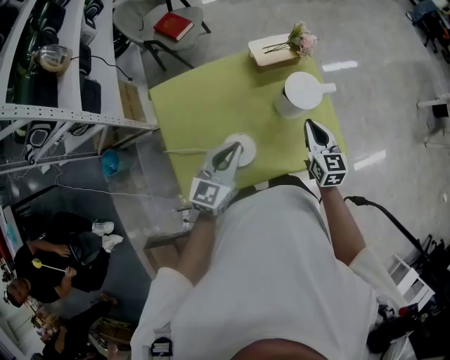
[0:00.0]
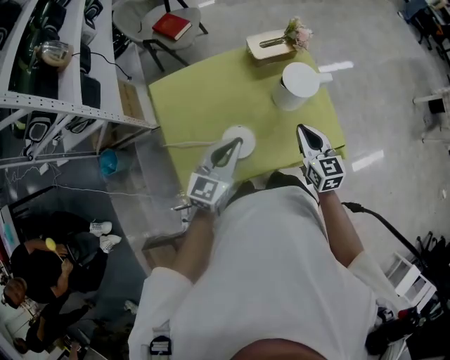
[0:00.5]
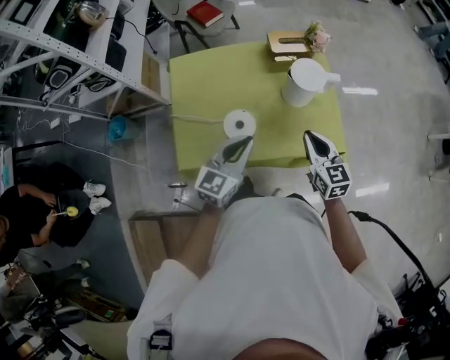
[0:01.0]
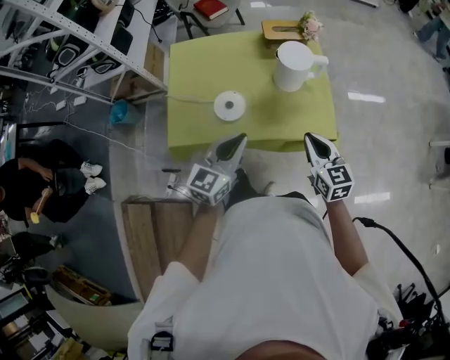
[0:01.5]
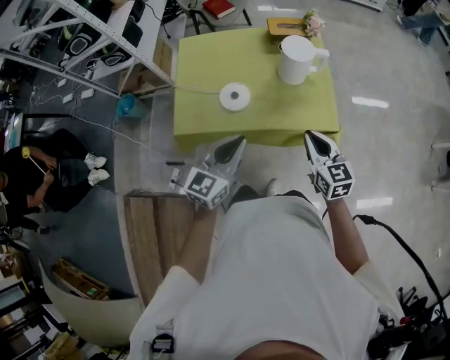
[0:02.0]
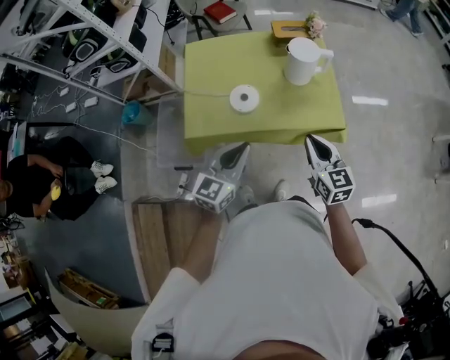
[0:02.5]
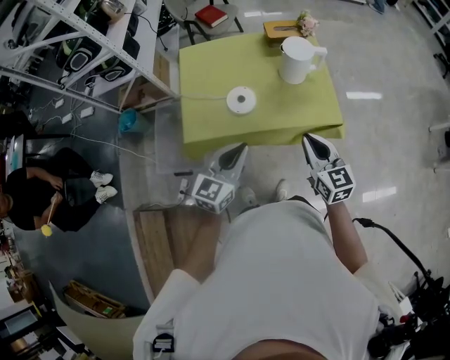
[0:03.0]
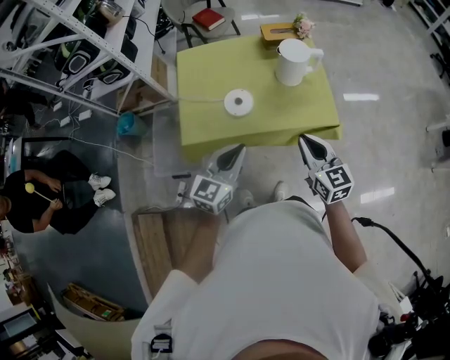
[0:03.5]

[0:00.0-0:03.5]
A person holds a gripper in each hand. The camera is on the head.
0:00.0 to 0:02.0: The right gripper heads backward, covering about 25 cm, and swivels approximately 20 degrees. The left gripper travels backward and to the right by approximately 30 cm.
0:02.0 to 0:03.5: Both grippers travel together to the left, roughly 5 cm.

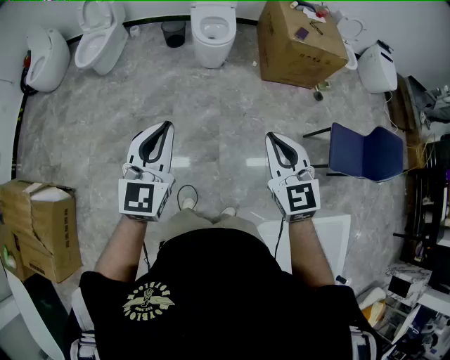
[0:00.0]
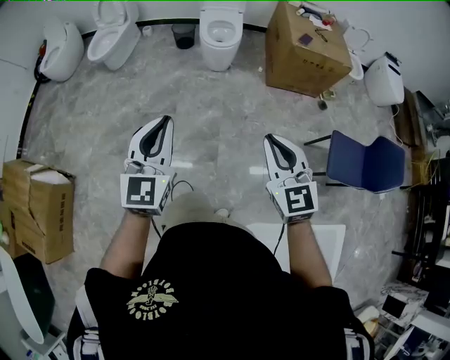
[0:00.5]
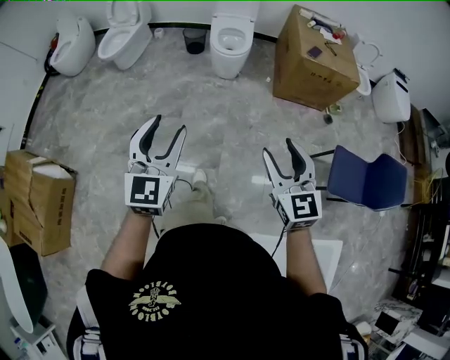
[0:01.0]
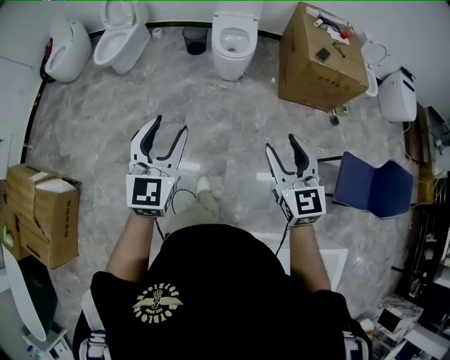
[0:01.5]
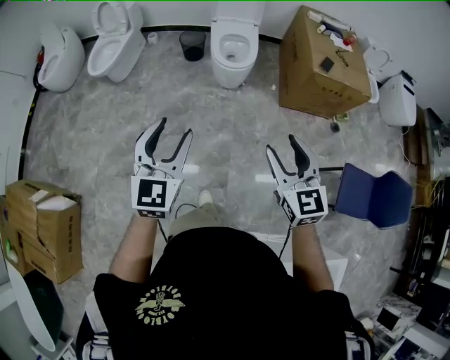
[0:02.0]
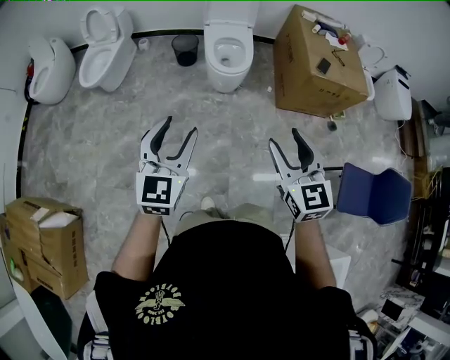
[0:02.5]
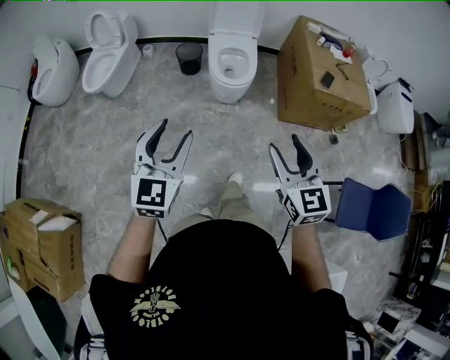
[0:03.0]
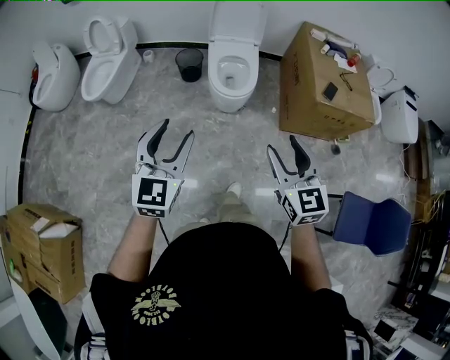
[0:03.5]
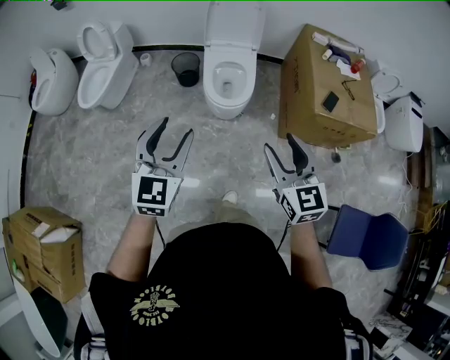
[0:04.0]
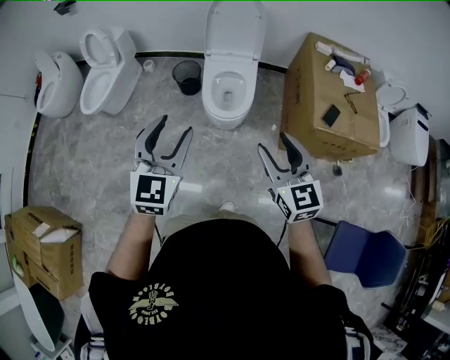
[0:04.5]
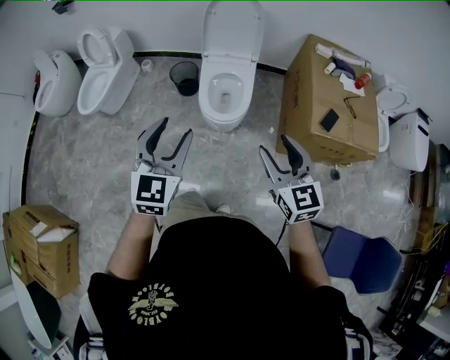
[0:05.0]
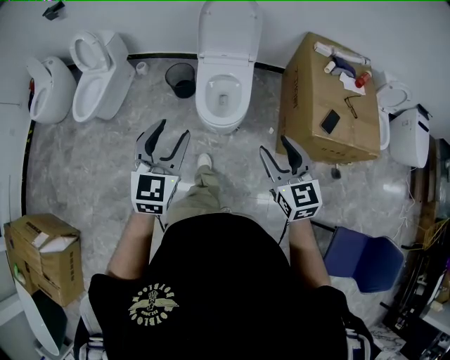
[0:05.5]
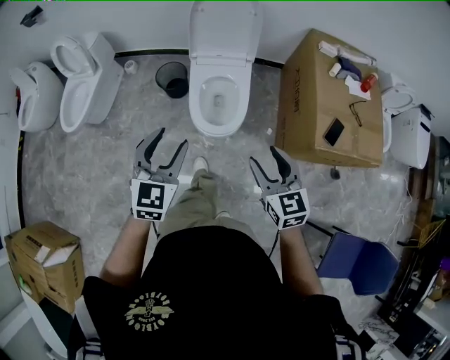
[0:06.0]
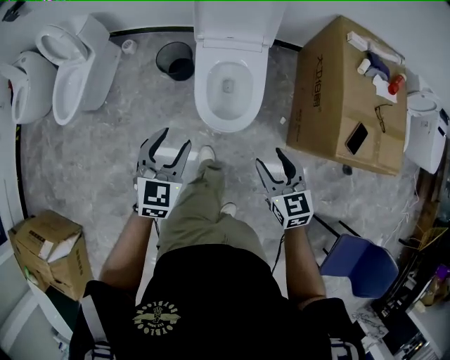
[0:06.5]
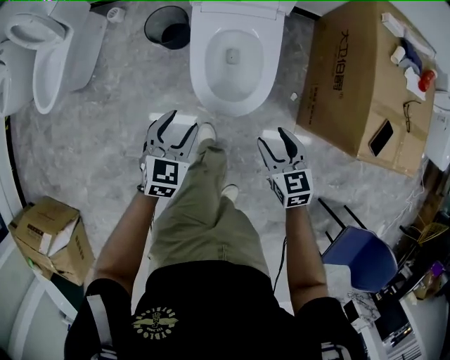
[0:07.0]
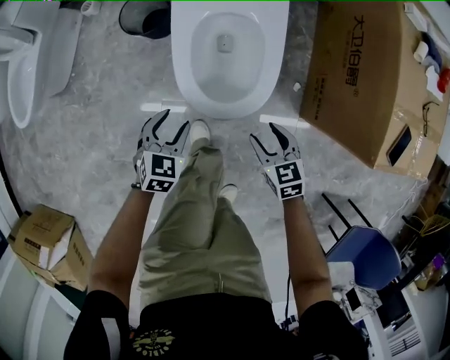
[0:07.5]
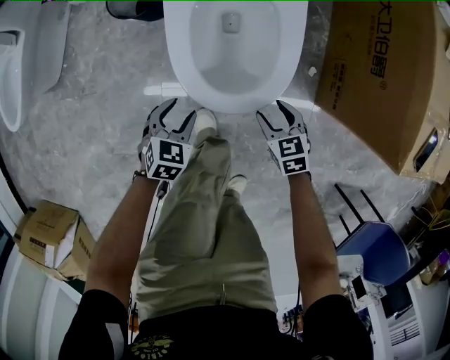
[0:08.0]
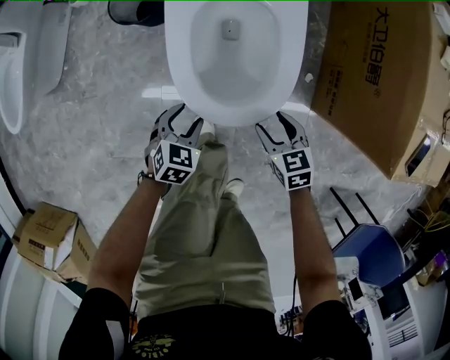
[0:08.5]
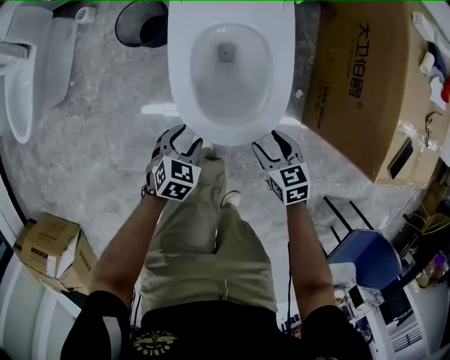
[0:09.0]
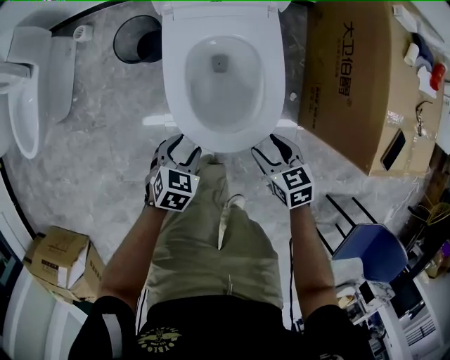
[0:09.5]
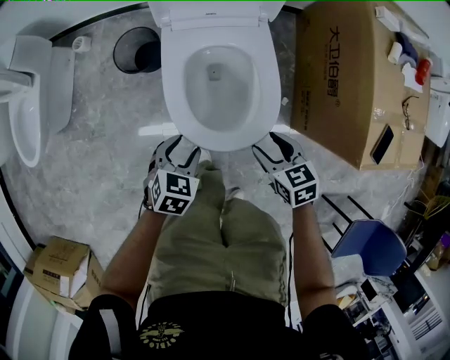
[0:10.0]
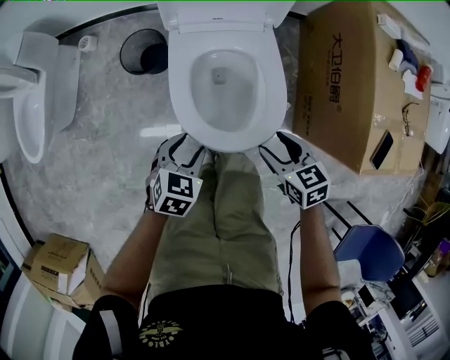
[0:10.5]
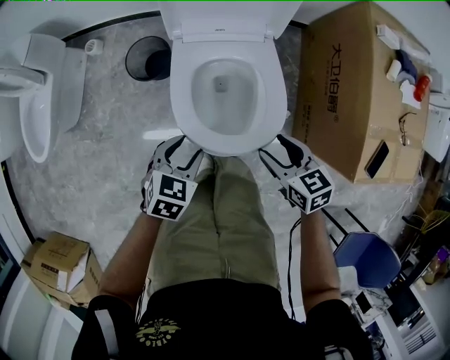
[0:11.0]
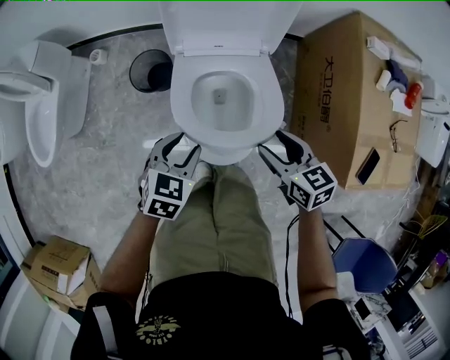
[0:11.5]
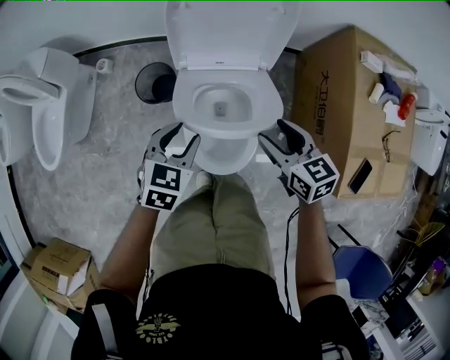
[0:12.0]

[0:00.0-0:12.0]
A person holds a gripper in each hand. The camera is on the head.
0:00.0 to 0:02.0: The grippers both shift forward by approximately 20 cm. The left gripper opens. Meanwhile the right gripper opens.
0:02.0 to 0:04.0: Both grippers travel together forward, some 30 cm.
0:04.0 to 0:06.0: The two grippers go approximately 25 cm forward and downward.
0:06.0 to 0:08.0: Both grippers move downward, some 60 cm. The right gripper swivels roughly 30 degrees. The left gripper tips its fingers downward by about 30 degrees.
0:08.0 to 0:10.0: The grippers both shift upward by about 20 cm.
0:10.0 to 0:12.0: Both grippers travel together upward and forward, roughly 25 cm.

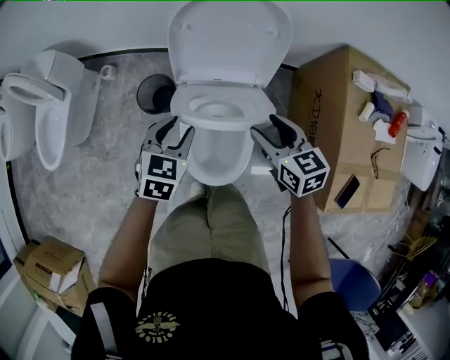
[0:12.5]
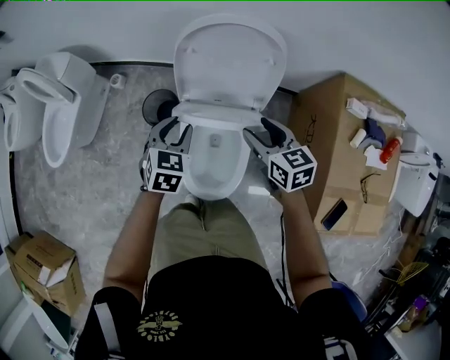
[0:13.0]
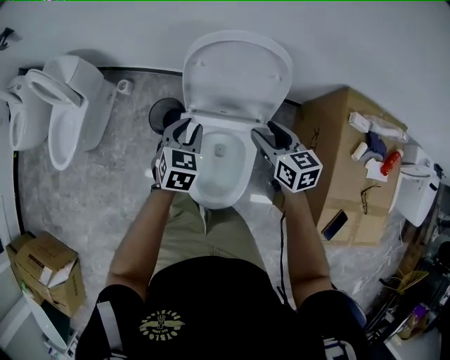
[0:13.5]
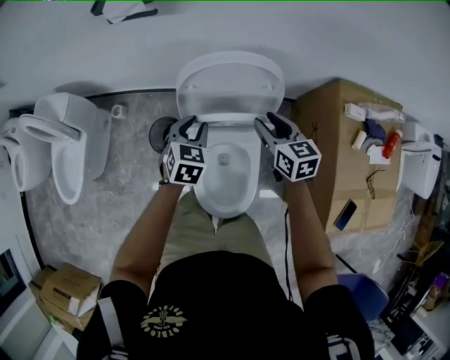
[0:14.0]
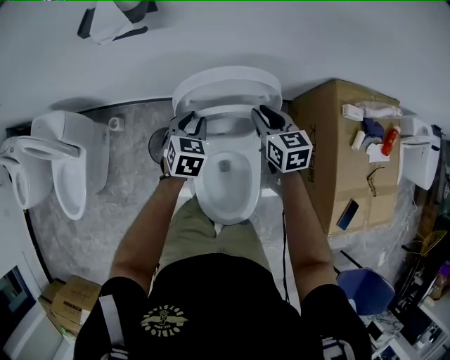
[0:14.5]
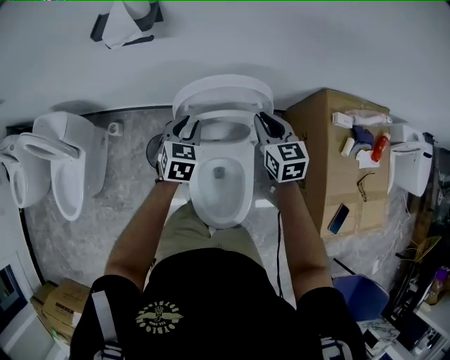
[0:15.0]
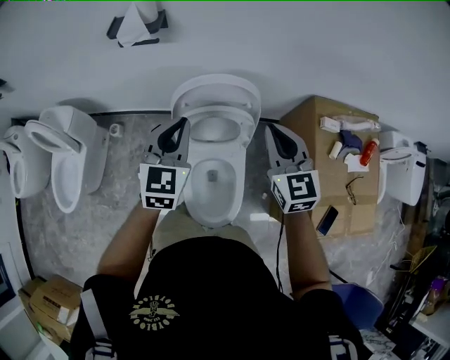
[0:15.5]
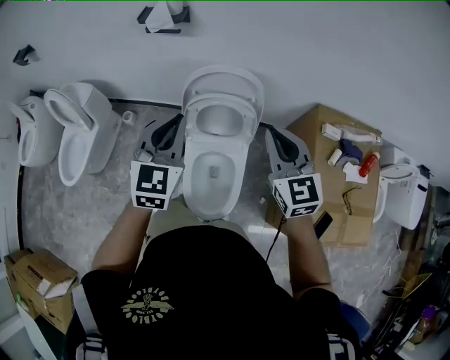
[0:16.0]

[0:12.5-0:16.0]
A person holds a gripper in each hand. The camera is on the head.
0:12.5 to 0:14.5: The grippers both shift forward by approximately 25 cm. The right gripper closes its fingers.
0:14.5 to 0:16.0: Both grippers travel together upward and backward, some 35 cm. The right gripper changes its angle by about 30 degrees; the left gripper changes its angle by roughly 30 degrees.

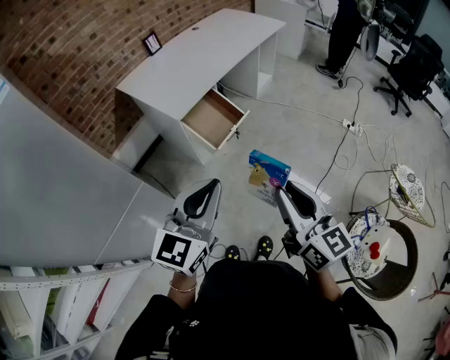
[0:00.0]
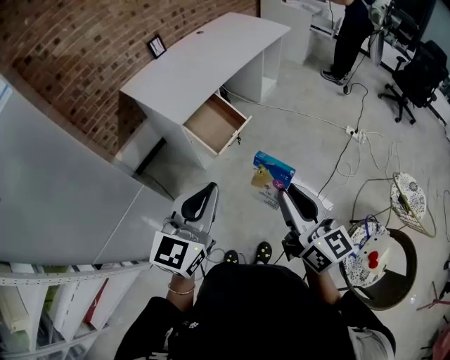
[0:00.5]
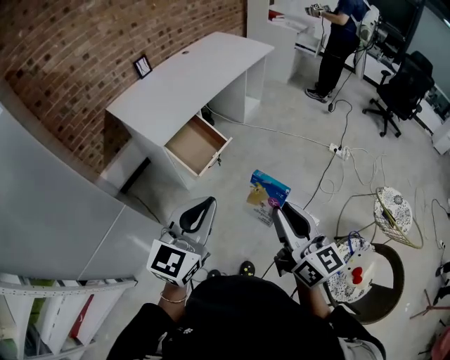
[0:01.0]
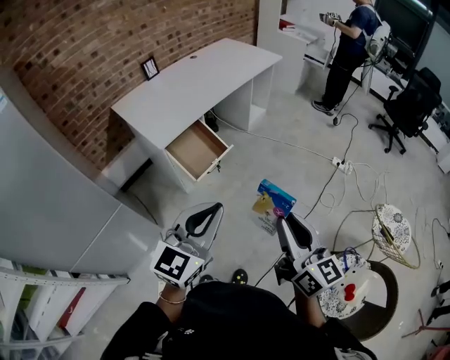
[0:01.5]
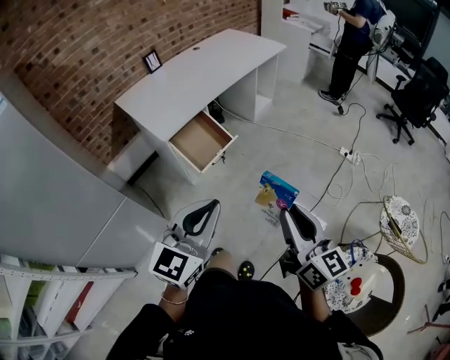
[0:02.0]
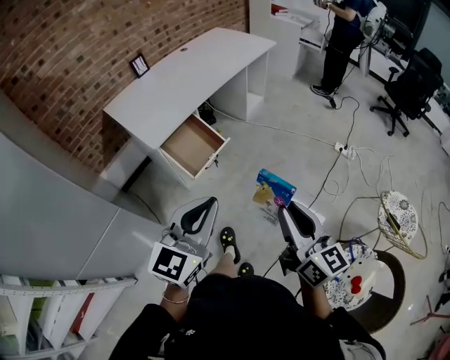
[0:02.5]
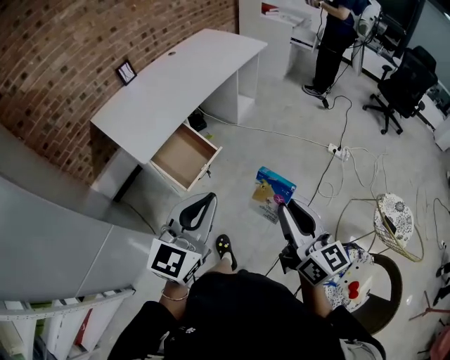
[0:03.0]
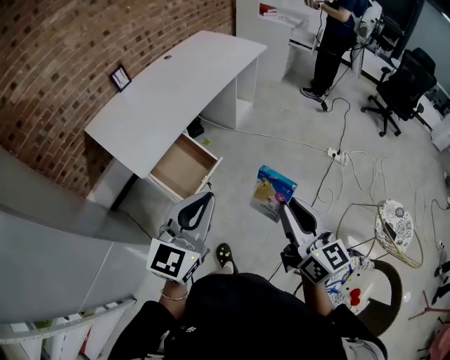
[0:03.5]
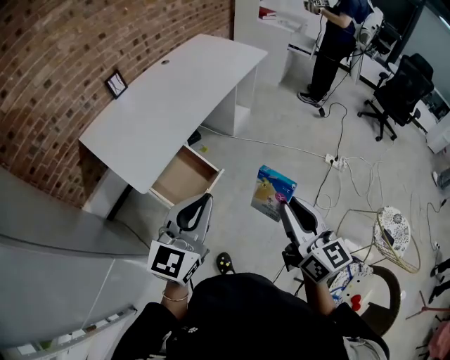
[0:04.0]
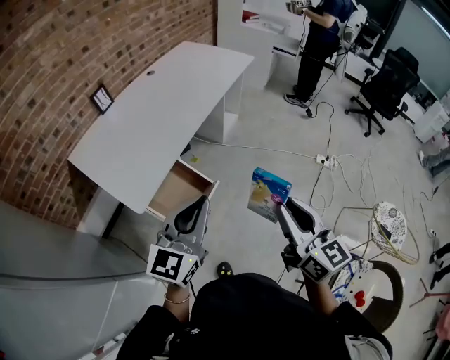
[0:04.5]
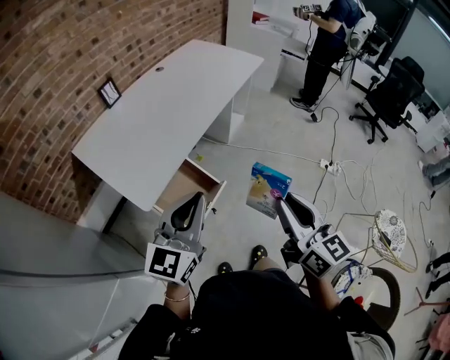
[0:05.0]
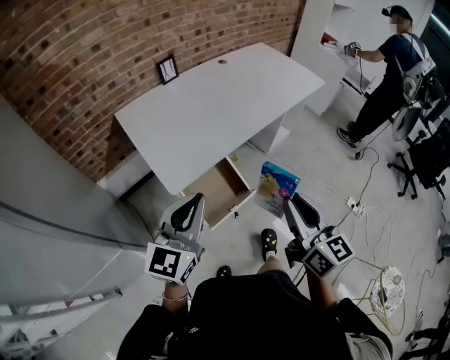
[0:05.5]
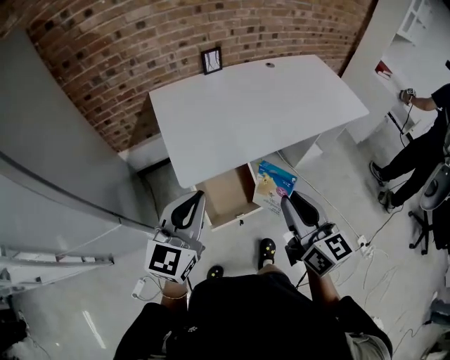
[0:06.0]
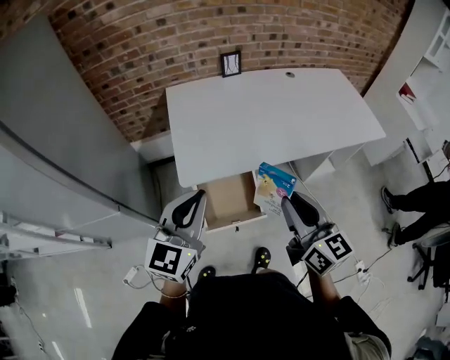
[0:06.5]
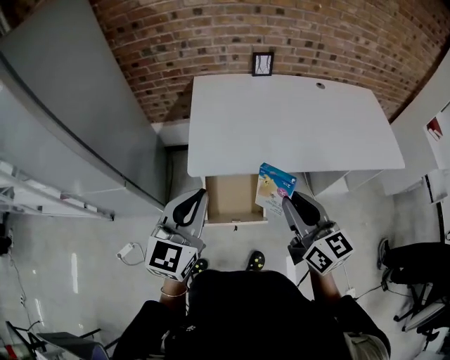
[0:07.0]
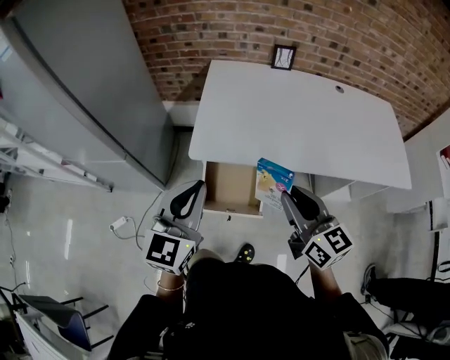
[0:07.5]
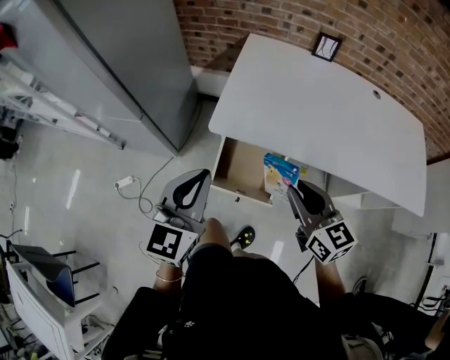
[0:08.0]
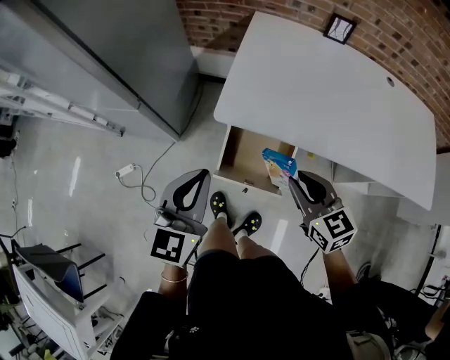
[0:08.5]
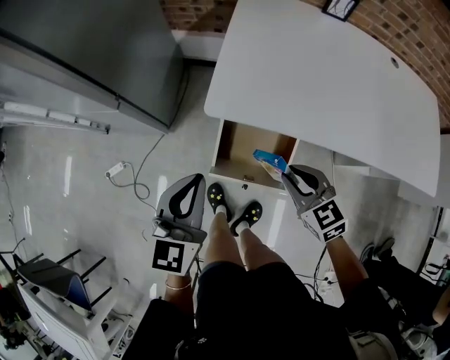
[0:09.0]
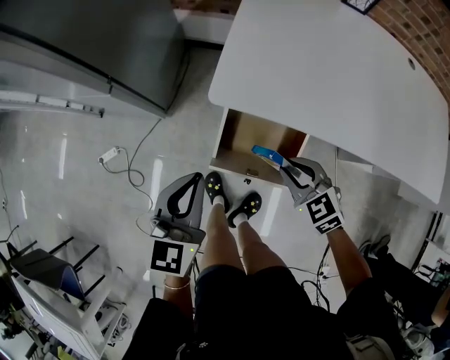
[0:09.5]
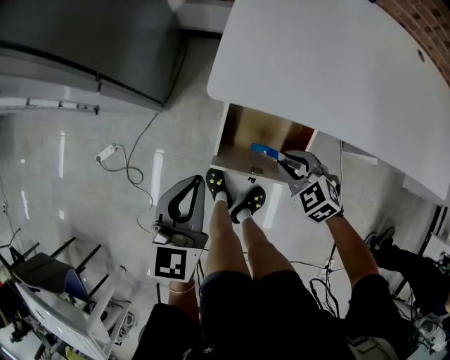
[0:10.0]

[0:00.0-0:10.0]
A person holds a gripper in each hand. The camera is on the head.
0:00.0 to 0:02.0: The two grippers go about 10 cm to the right.
0:02.0 to 0:04.0: Both grippers move forward, roughly 25 cm.
0:04.0 to 0:06.0: The left gripper shifts by roughly 15 cm, and rotates about 40 degrees. The right gripper moves about 25 cm, and turns by roughly 30 degrees.
0:06.0 to 0:08.0: The right gripper moves approximately 15 cm, and changes its angle by some 50 degrees. The left gripper changes place by approximately 5 cm, and turns by roughly 40 degrees.
0:08.0 to 0:10.0: The two grippers go some 25 cm downward. The right gripper angles its fingers downward, by roughly 40 degrees.
